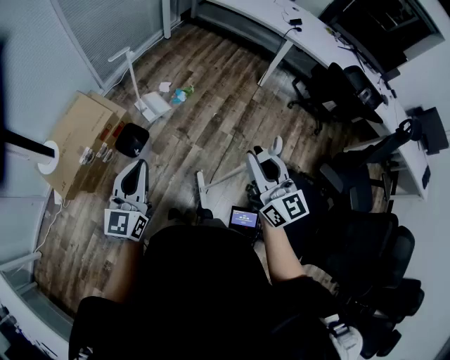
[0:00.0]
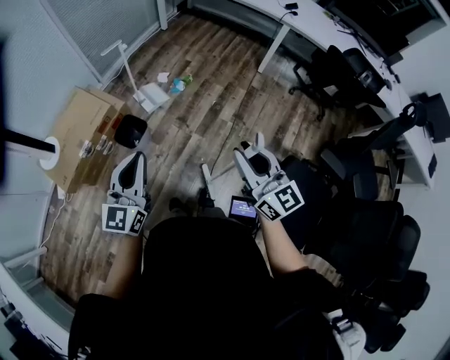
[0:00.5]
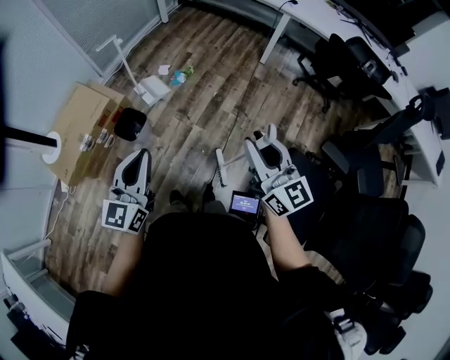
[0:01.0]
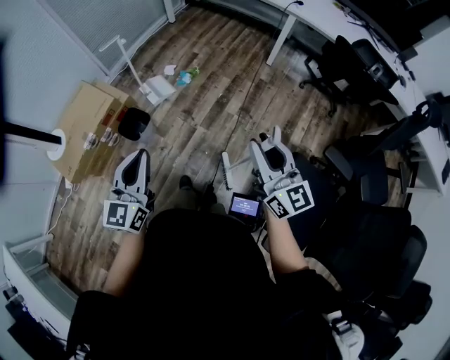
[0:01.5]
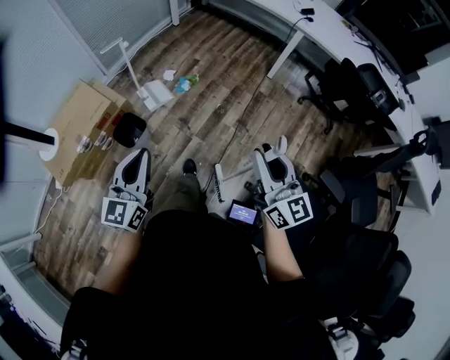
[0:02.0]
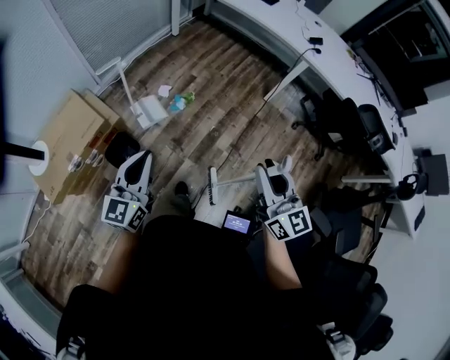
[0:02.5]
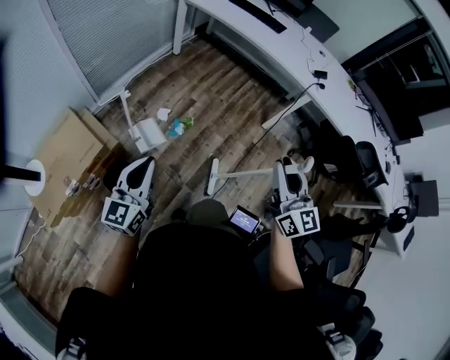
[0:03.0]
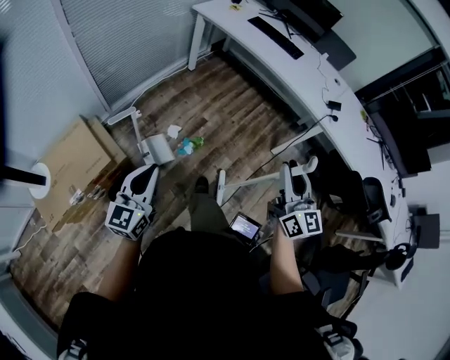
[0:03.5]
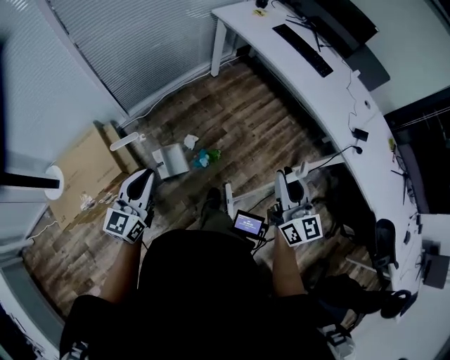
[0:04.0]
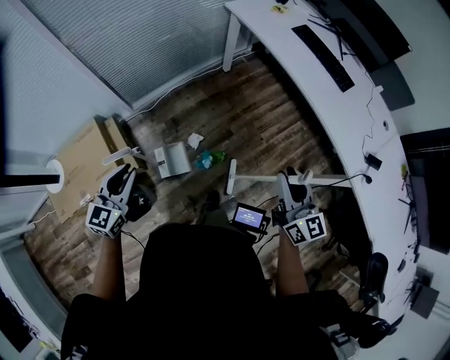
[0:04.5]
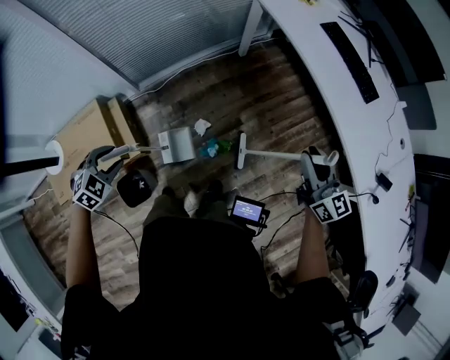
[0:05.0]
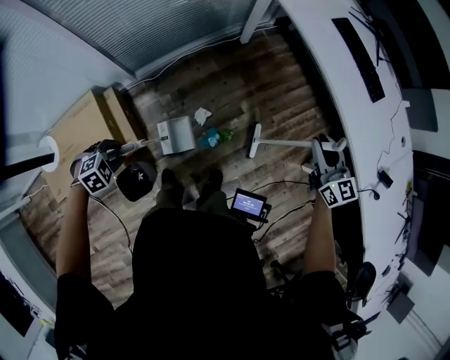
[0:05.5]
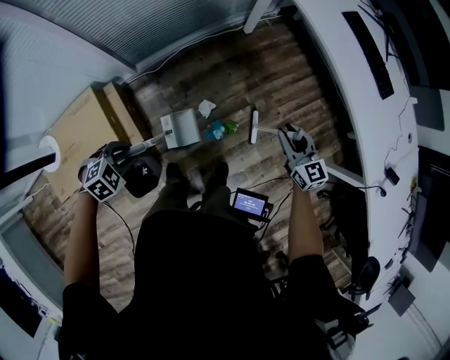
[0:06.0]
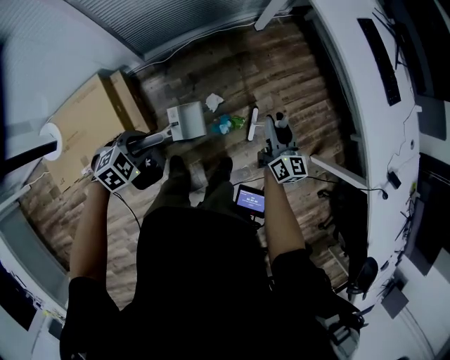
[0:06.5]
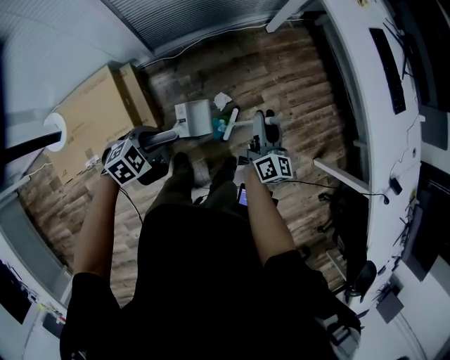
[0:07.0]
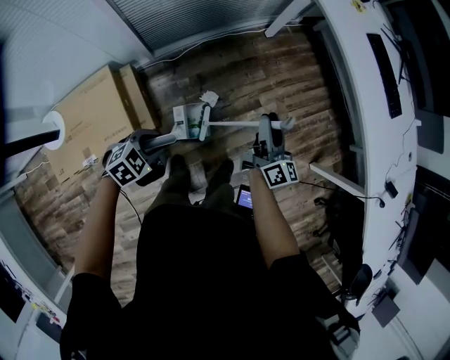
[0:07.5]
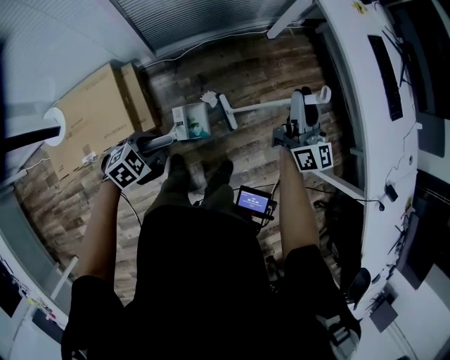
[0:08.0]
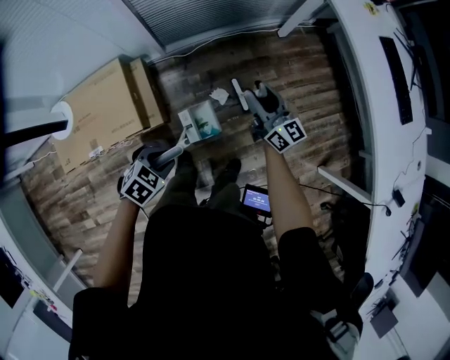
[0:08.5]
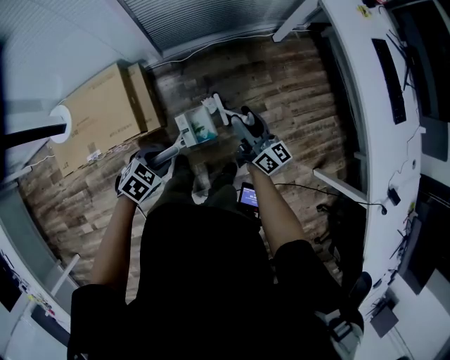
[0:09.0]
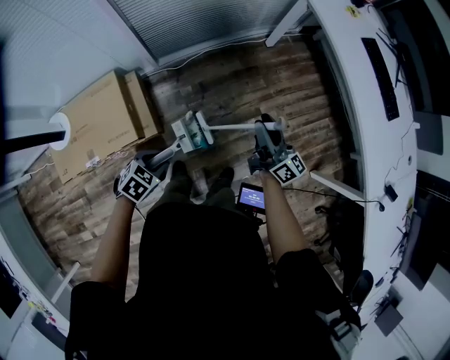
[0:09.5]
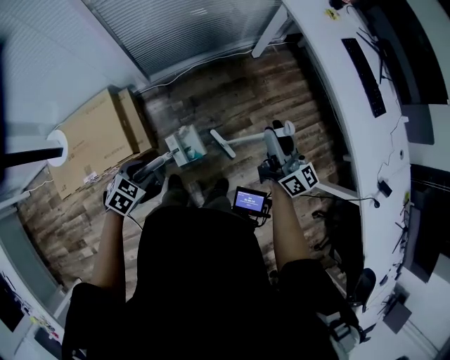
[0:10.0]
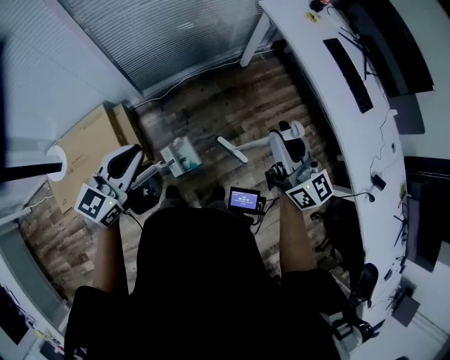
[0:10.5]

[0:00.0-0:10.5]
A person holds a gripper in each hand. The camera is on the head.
0:00.0 to 0:02.0: The grippers both shift to the right by some 10 cm.
0:02.0 to 0:04.0: Both grippers are carried forward, approximately 50 cm.
0:04.0 to 0:06.5: The right gripper ends up about 40 cm from where it was, while the left gripper heads downward, covering about 20 cm, tilts its fingers roughly 60 degrees downward, and opens its fingers.
0:06.5 to 0:08.5: The right gripper shifts some 15 cm to the left, and swivels some 30 degrees. Meanwhile the left gripper travels backward by some 5 cm, and swivels some 20 degrees.
0:08.5 to 0:10.5: The left gripper travels upward by approximately 25 cm, tips its fingers upward by about 50 degrees, and closes, while the right gripper travels upward and to the right by approximately 30 cm.

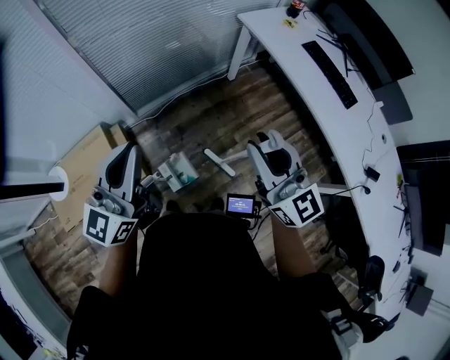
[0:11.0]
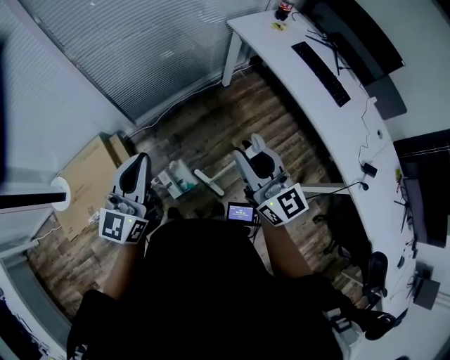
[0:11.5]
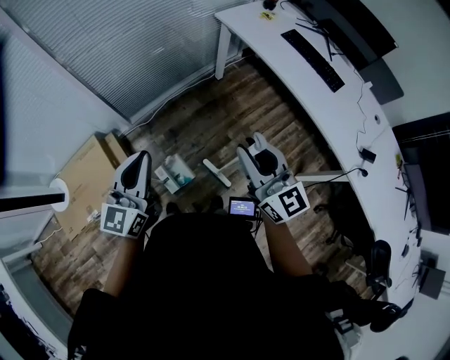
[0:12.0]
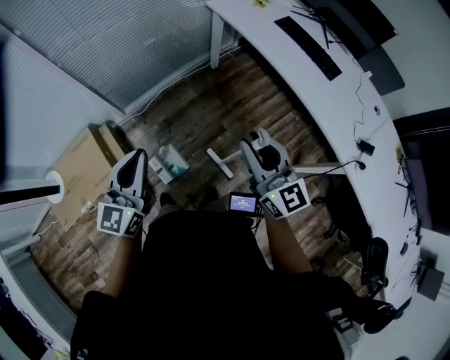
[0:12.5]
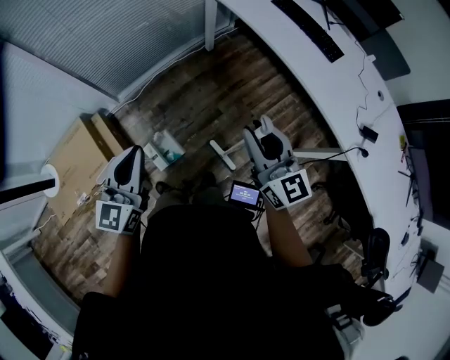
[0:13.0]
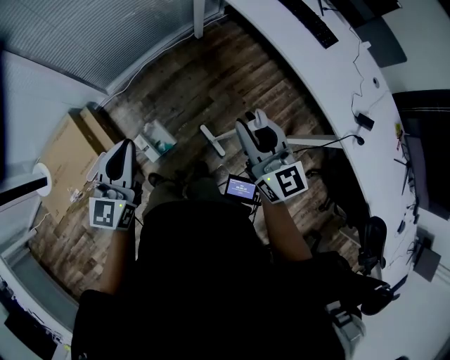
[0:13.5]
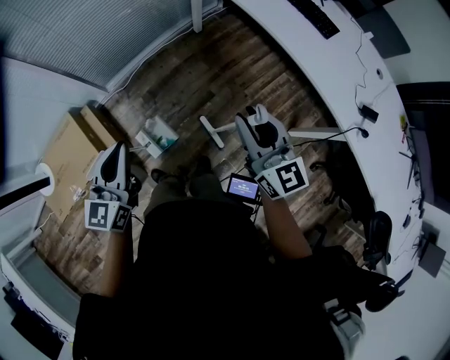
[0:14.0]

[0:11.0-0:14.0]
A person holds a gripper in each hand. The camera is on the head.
0:11.0 to 0:12.5: The left gripper is displaced to the right and downward by about 15 cm; the right gripper heads to the right, downward and backward, covering approximately 15 cm.
0:12.5 to 0:14.0: The two grippers go roughly 5 cm downward.

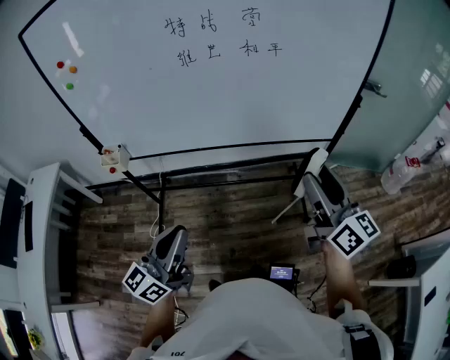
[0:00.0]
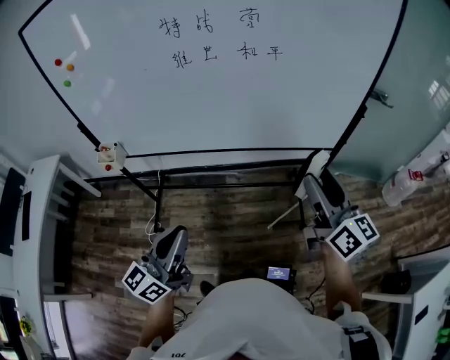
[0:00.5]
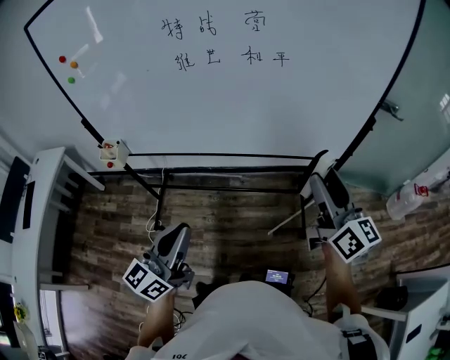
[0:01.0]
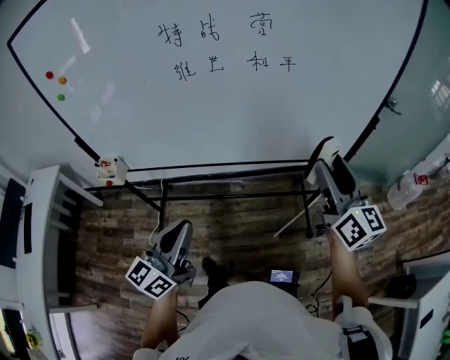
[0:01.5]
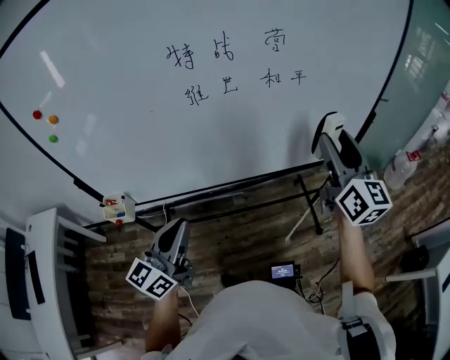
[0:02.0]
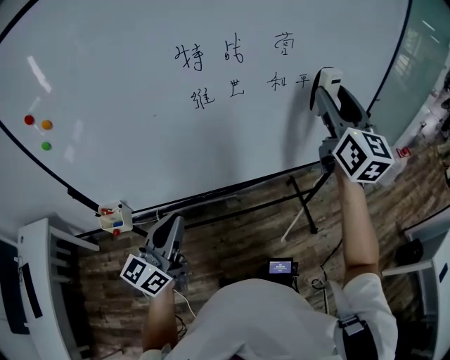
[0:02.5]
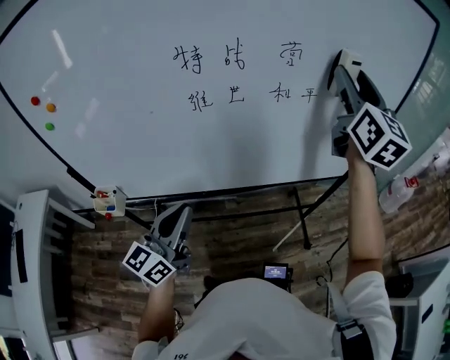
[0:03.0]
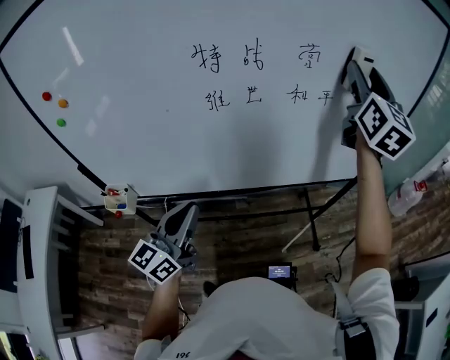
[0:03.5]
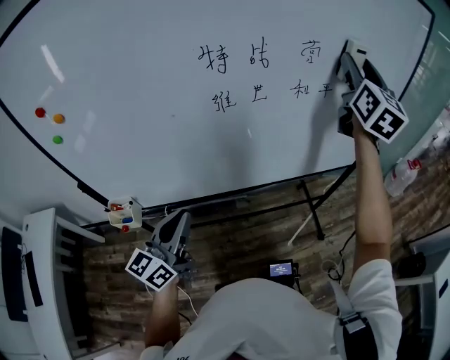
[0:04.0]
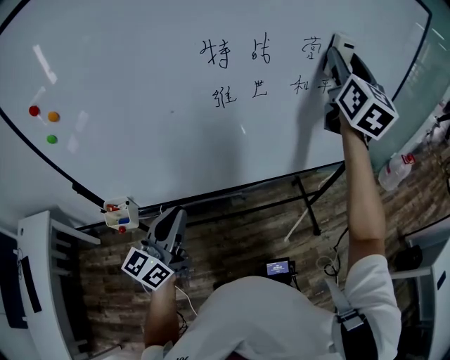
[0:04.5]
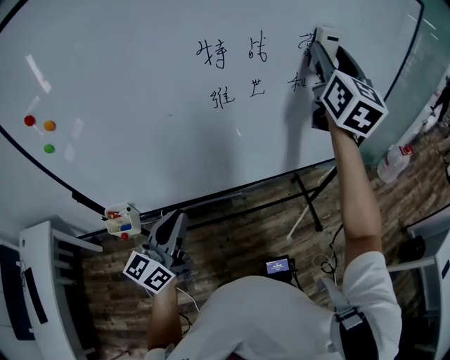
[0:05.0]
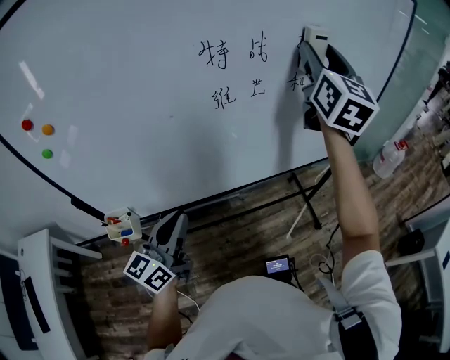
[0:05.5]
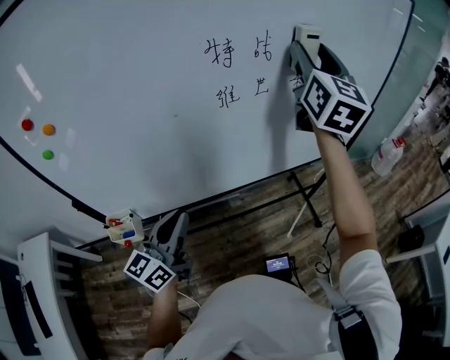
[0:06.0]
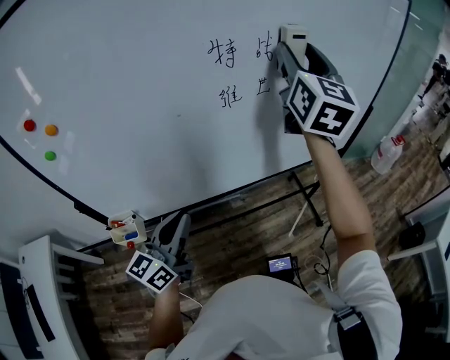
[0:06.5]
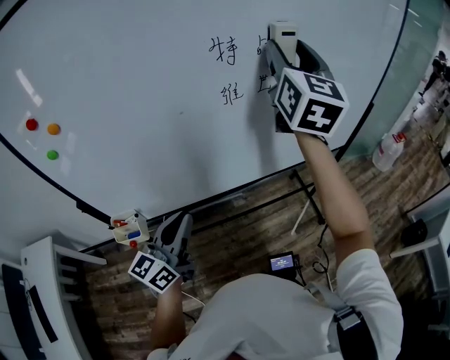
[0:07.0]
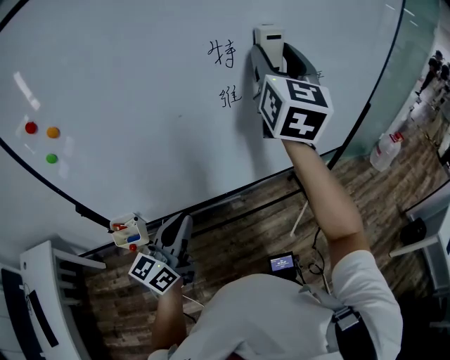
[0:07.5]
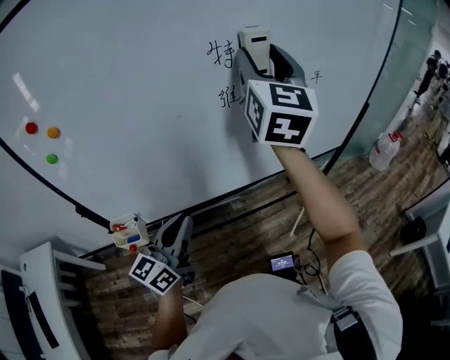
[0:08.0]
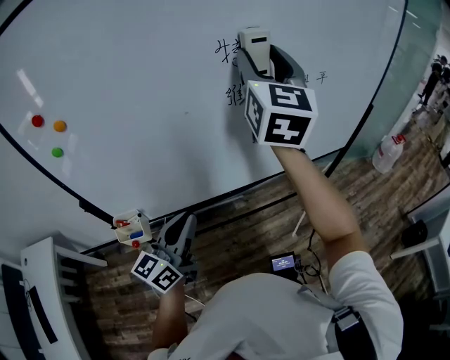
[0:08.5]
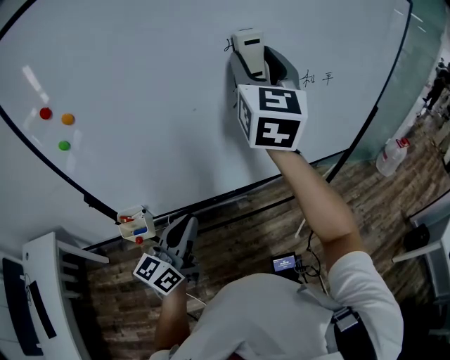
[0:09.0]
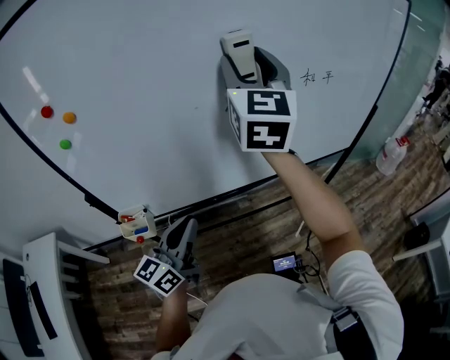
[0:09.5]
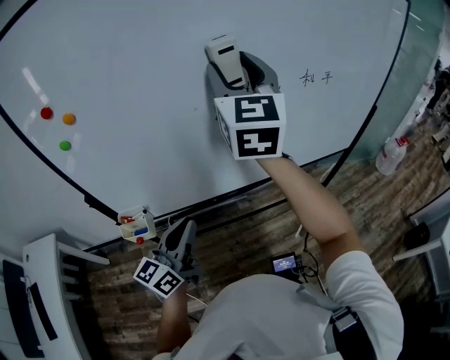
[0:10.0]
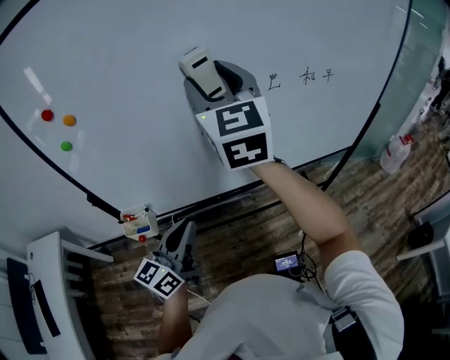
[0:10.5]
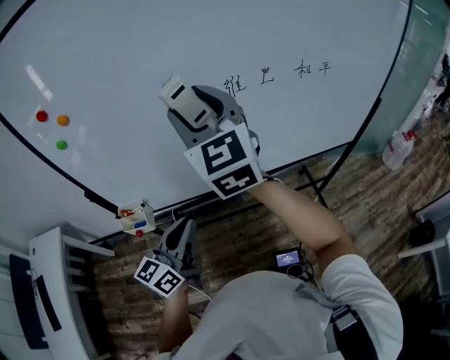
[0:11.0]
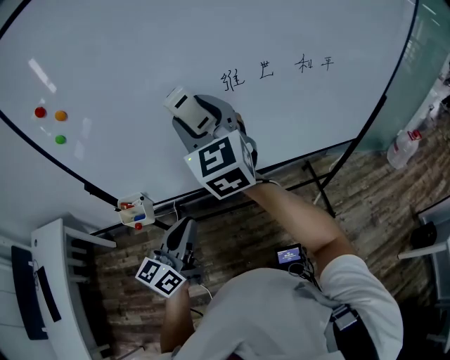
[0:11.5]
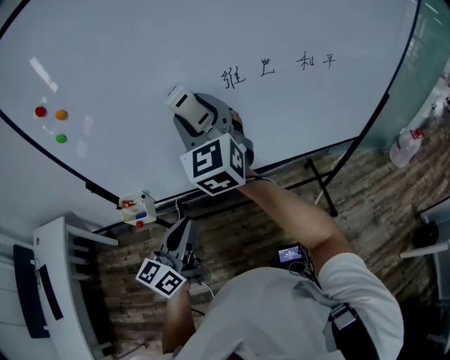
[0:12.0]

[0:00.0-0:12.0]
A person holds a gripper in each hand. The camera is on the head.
0:00.0 to 0:02.0: The right gripper heads forward, covering approximately 20 cm, and rotates about 30 degrees. Meanwhile the left gripper goes about 20 cm forward and to the left.
0:02.0 to 0:04.0: The right gripper heads upward and forward, covering roughly 20 cm, and changes its angle by some 20 degrees; the left gripper moves left and right over approximately 10 cm, changing direction 2 times.
0:04.0 to 0:06.0: The right gripper goes approximately 15 cm to the left and backward.
0:06.0 to 0:08.0: The right gripper moves to the left and backward, roughly 10 cm.
0:08.0 to 0:10.0: The right gripper moves to the left, about 10 cm.
0:10.0 to 0:12.0: The right gripper is displaced downward and to the left by about 15 cm, and swivels approximately 20 degrees.

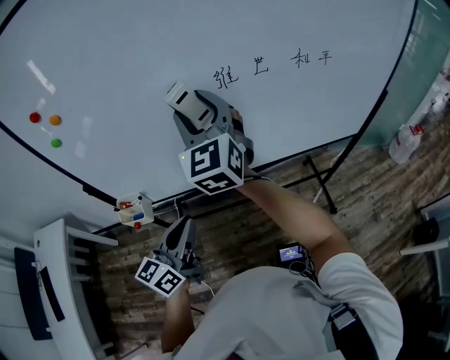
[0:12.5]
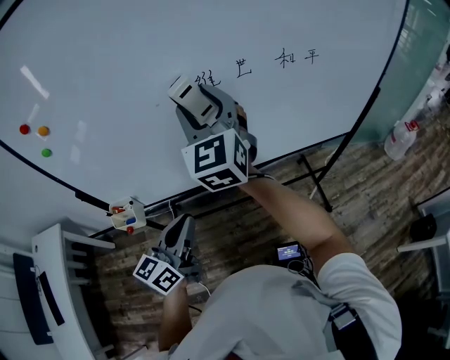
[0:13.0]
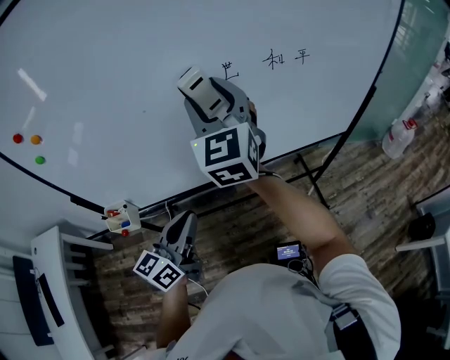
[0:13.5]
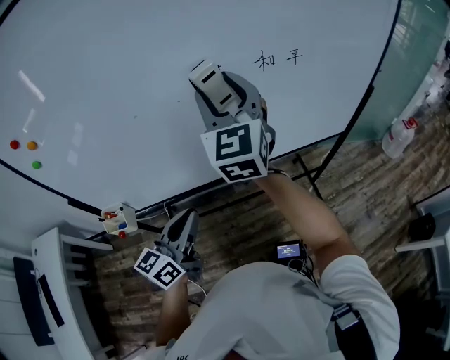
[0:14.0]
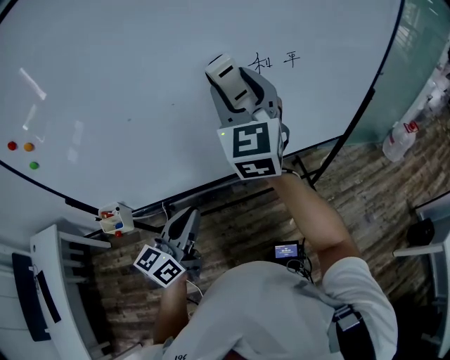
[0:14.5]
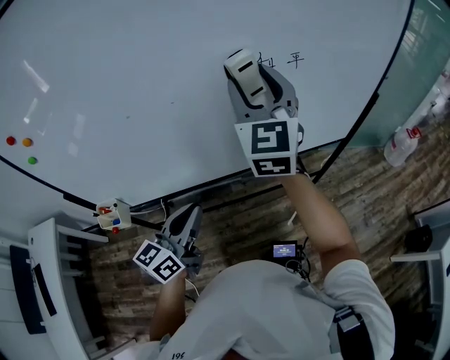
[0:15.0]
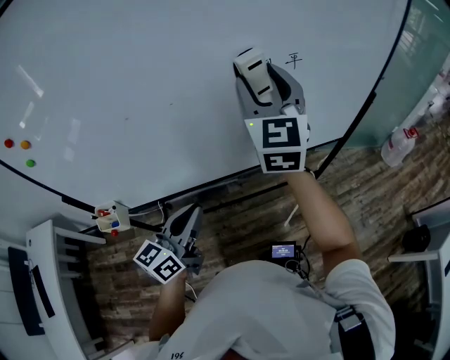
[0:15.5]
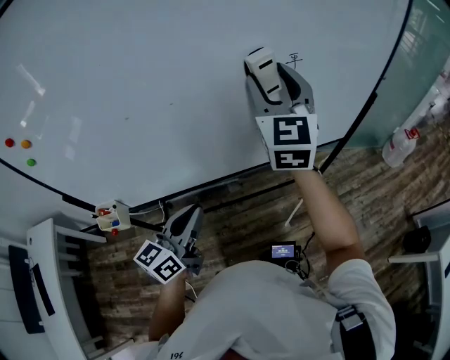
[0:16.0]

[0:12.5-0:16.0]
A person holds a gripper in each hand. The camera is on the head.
0:12.5 to 0:14.5: The right gripper is displaced to the right by approximately 20 cm, while the left gripper moves to the right and forward, some 15 cm.
0:14.5 to 0:16.0: The right gripper heads to the right, covering roughly 5 cm.
